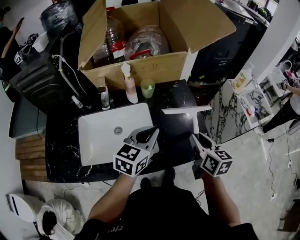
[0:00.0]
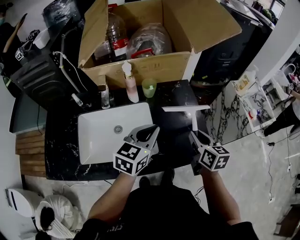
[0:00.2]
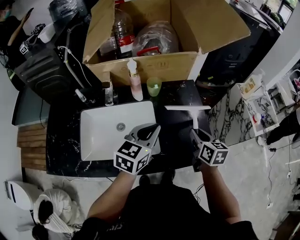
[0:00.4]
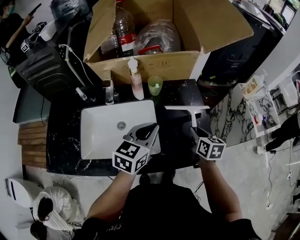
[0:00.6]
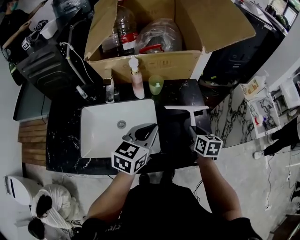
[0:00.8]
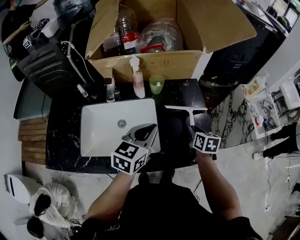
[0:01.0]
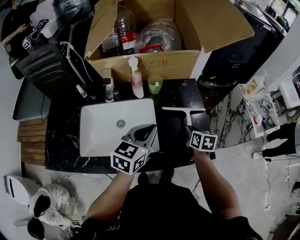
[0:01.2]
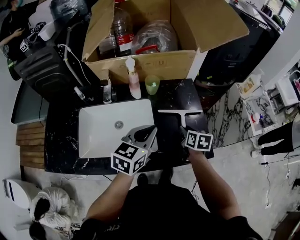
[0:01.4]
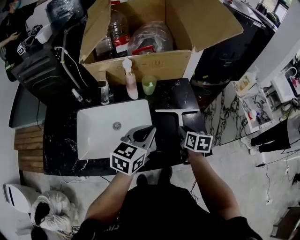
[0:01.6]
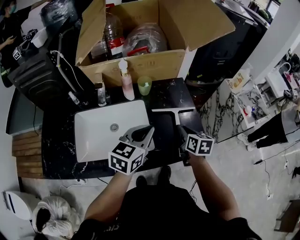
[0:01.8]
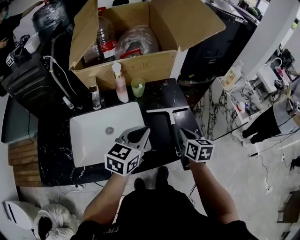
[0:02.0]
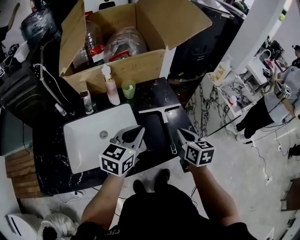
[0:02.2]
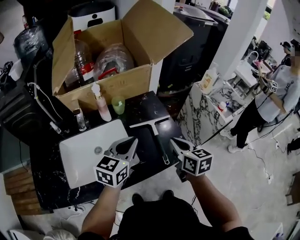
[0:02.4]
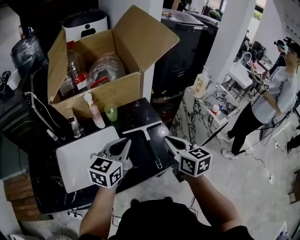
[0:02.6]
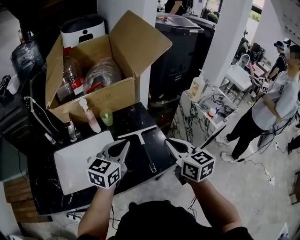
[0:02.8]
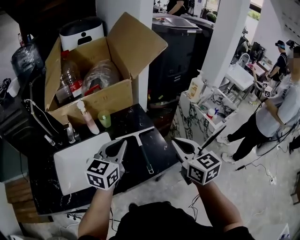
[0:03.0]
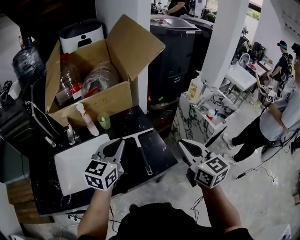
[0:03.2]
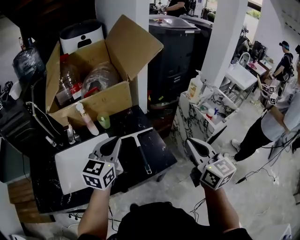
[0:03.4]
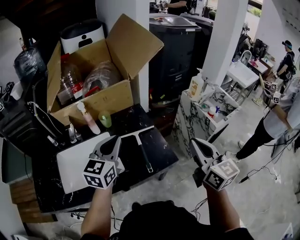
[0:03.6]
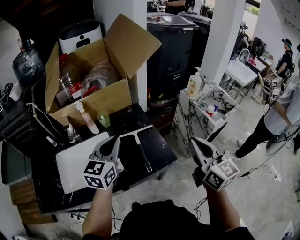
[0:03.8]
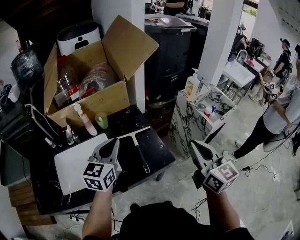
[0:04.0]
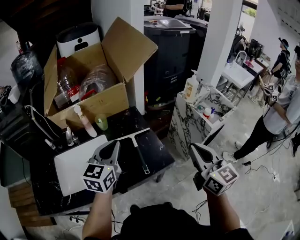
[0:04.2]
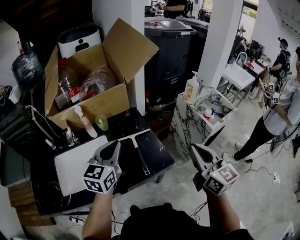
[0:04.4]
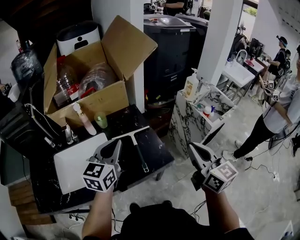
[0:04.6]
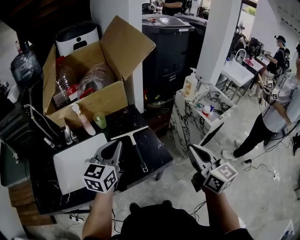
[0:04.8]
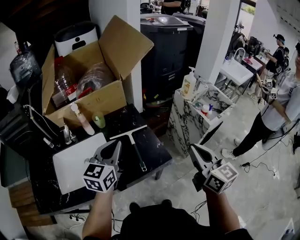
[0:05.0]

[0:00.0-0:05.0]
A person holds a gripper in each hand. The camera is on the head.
0:00.0 to 0:01.6: The right gripper goes about 15 cm downward and forward.
0:01.6 to 0:03.4: The right gripper shifts roughly 35 cm upward and to the right, angles its fingers upward, by roughly 40 degrees, and closes; the left gripper goes some 15 cm upward and to the right.
0:03.4 to 0:05.0: The right gripper moves approximately 5 cm.

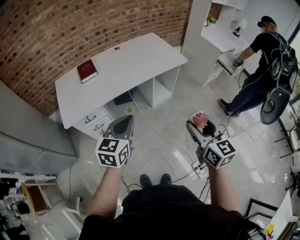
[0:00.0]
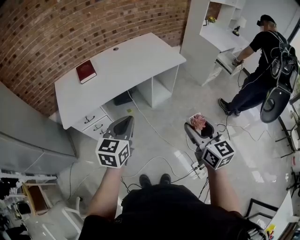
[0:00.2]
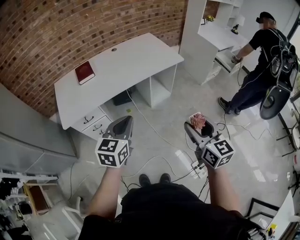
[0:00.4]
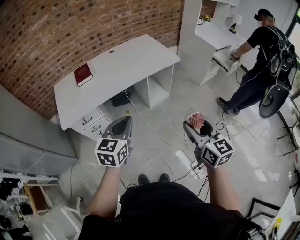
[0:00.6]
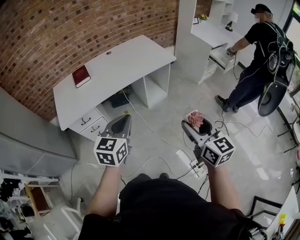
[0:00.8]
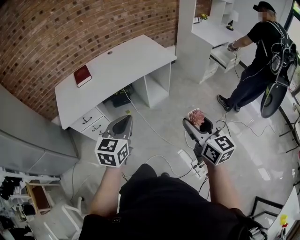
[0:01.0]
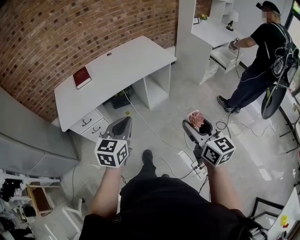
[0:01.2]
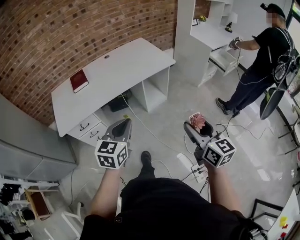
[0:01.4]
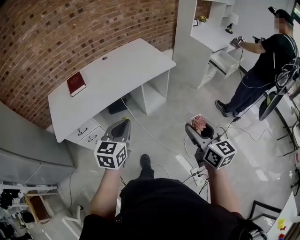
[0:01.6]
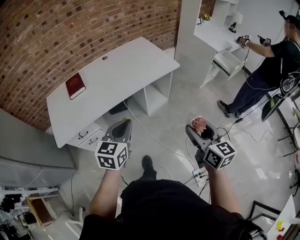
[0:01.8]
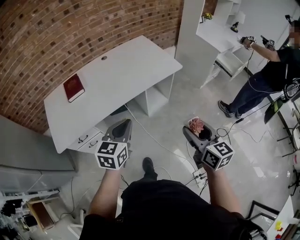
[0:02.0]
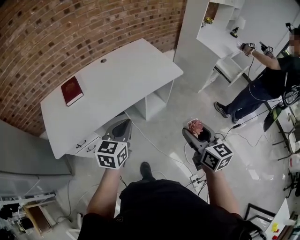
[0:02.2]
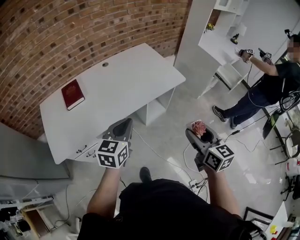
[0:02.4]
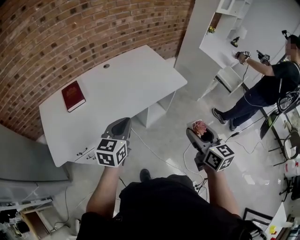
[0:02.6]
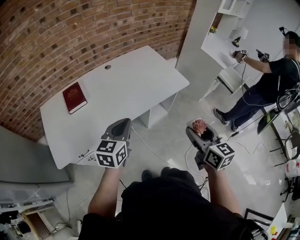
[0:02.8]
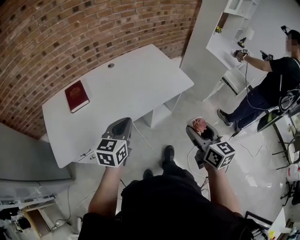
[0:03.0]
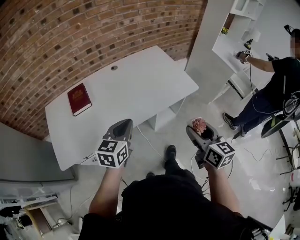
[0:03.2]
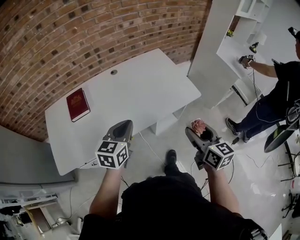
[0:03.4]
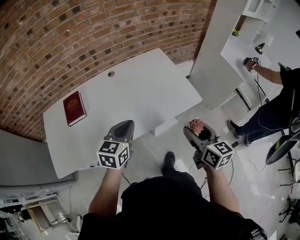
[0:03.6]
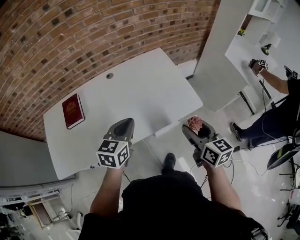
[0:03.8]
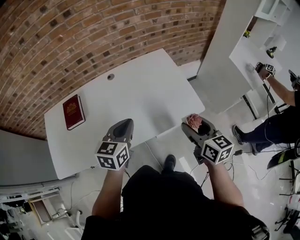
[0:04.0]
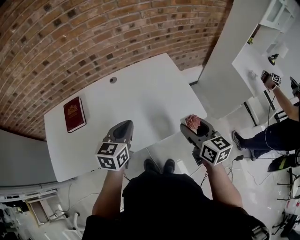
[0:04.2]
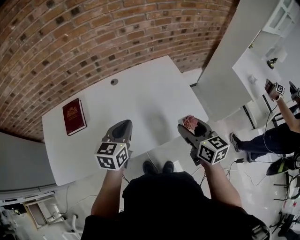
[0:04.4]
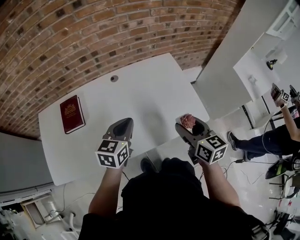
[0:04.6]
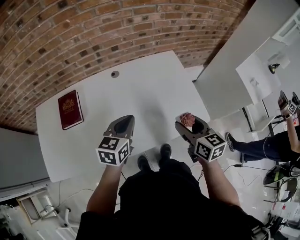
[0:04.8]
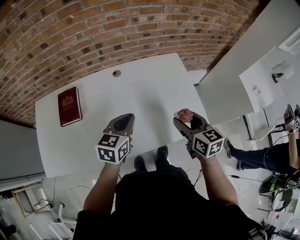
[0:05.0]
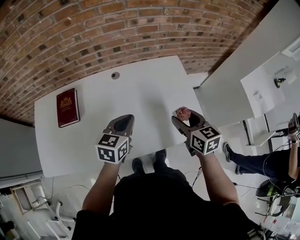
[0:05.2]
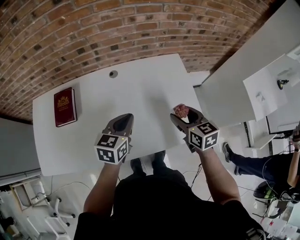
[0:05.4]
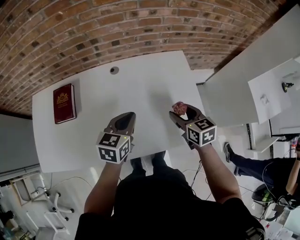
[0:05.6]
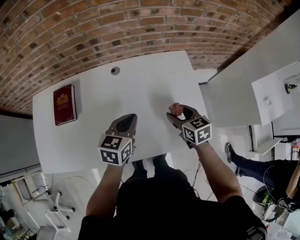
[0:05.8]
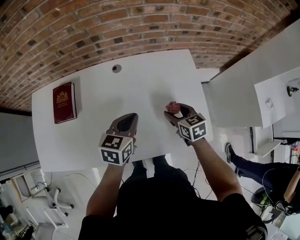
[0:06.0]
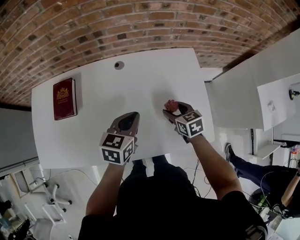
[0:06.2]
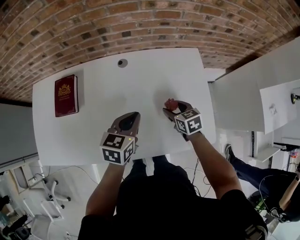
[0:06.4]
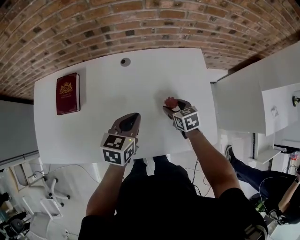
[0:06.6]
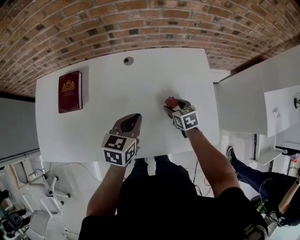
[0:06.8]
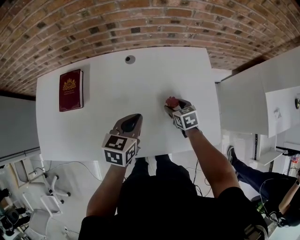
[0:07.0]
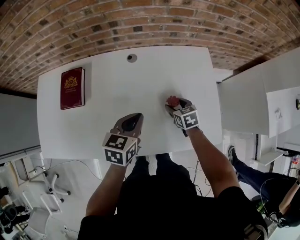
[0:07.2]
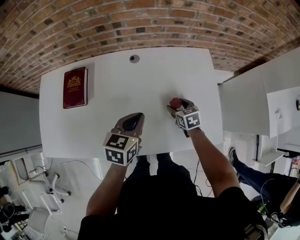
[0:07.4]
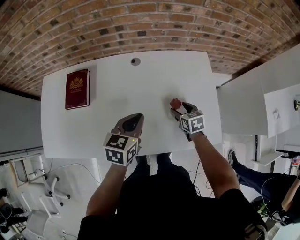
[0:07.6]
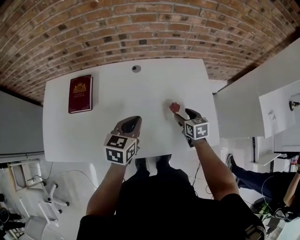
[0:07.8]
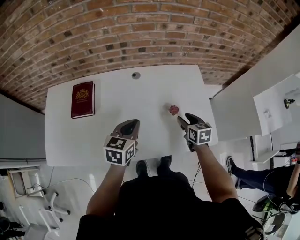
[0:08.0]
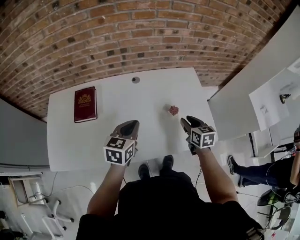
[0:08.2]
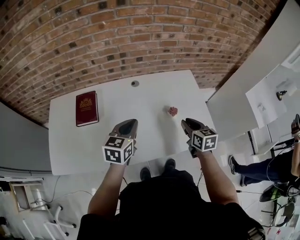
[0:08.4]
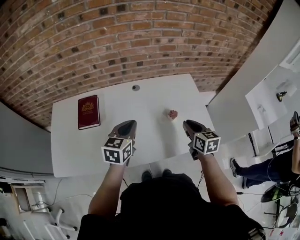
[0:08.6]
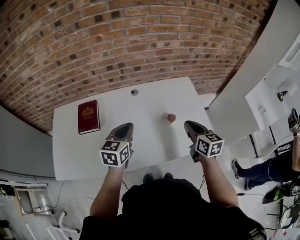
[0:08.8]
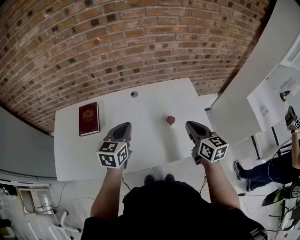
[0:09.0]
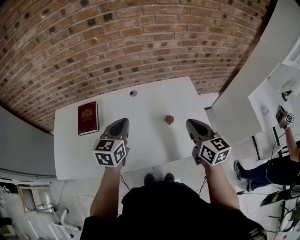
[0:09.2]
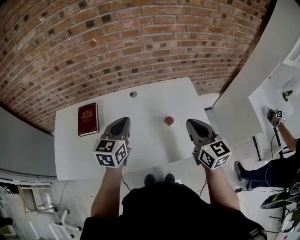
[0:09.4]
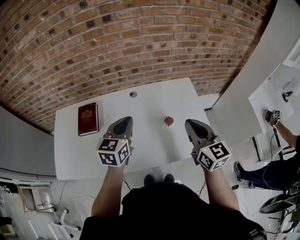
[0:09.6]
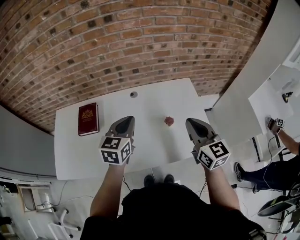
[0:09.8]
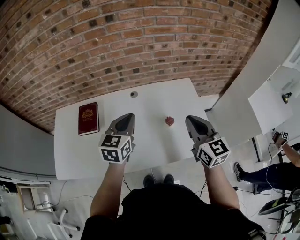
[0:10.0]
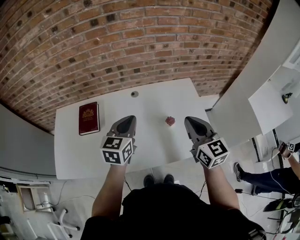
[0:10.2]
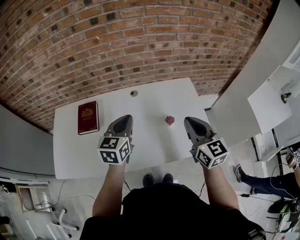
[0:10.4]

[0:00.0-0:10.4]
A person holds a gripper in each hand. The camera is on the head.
0:00.0 to 0:01.4: Both grippers travel together to the right, approximately 10 cm.
0:01.4 to 0:03.0: The two grippers go some 30 cm forward and to the left.
0:03.0 to 0:04.4: Both grippers travel together forward, some 30 cm.
0:04.4 to 0:06.0: The left gripper is displaced forward and downward by roughly 15 cm. Meanwhile the right gripper is displaced forward and downward by about 25 cm, and rotates roughly 30 degrees.
0:06.0 to 0:07.4: The right gripper heads downward, covering roughly 10 cm.
0:07.4 to 0:09.0: The left gripper travels upward and to the left by some 15 cm. The right gripper shifts approximately 30 cm upward and backward, angles its fingers upward, by about 30 degrees, and closes its fingers.
0:09.0 to 0:10.4: The right gripper is displaced upward by some 5 cm.

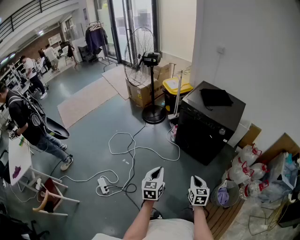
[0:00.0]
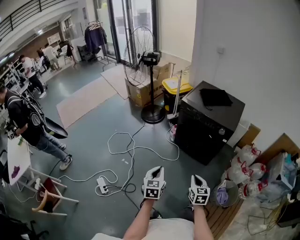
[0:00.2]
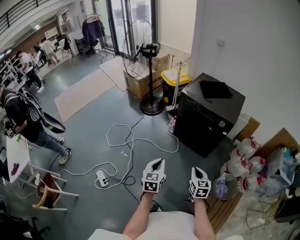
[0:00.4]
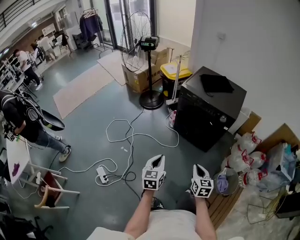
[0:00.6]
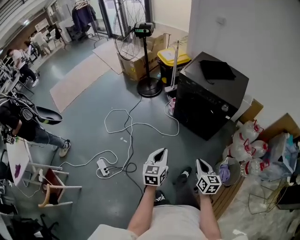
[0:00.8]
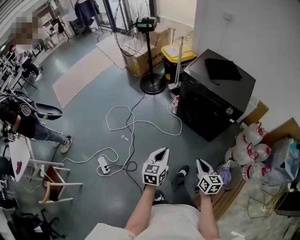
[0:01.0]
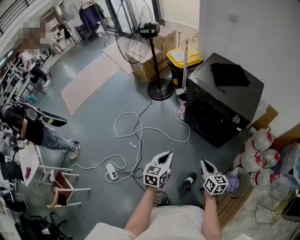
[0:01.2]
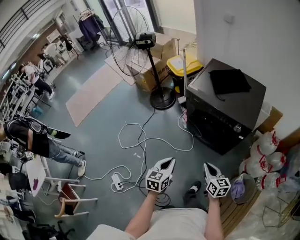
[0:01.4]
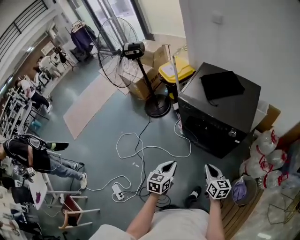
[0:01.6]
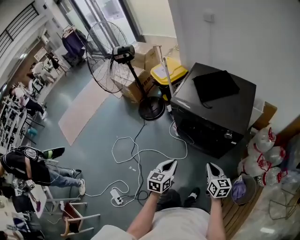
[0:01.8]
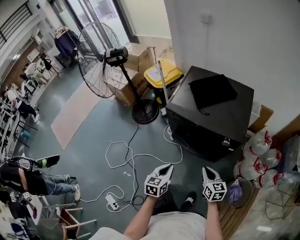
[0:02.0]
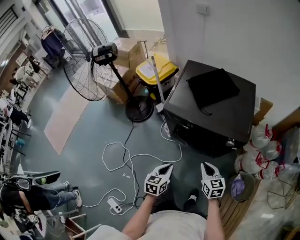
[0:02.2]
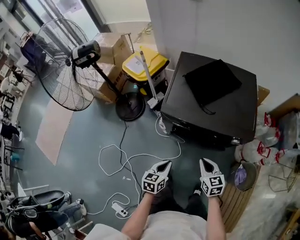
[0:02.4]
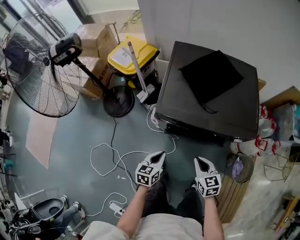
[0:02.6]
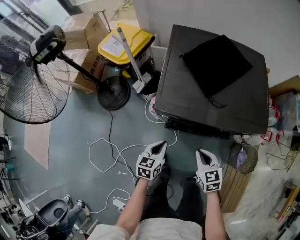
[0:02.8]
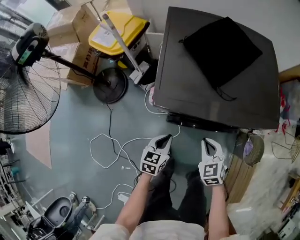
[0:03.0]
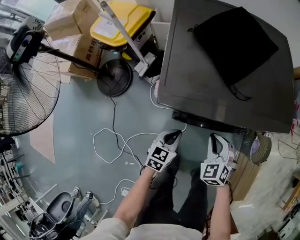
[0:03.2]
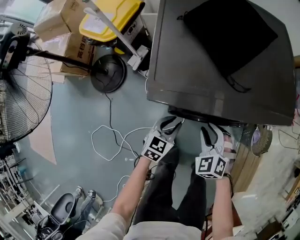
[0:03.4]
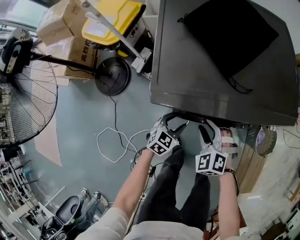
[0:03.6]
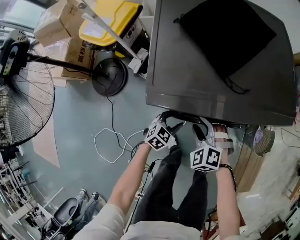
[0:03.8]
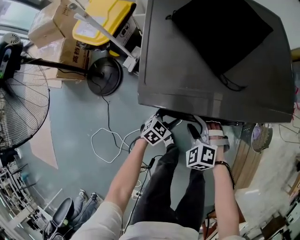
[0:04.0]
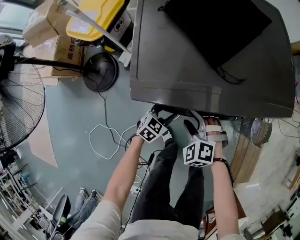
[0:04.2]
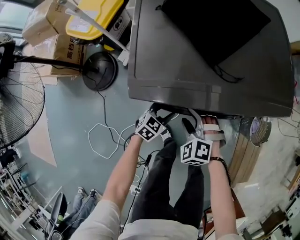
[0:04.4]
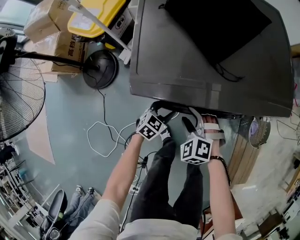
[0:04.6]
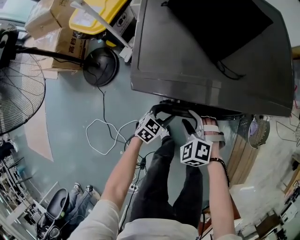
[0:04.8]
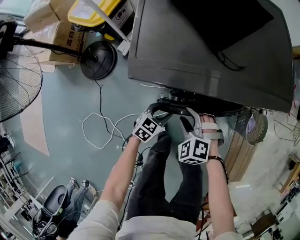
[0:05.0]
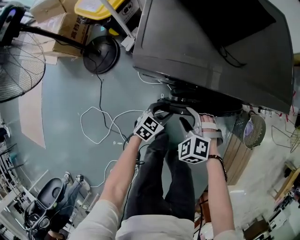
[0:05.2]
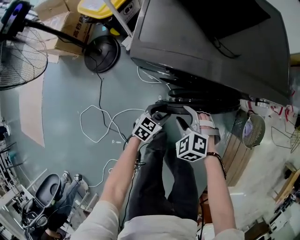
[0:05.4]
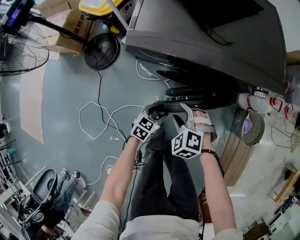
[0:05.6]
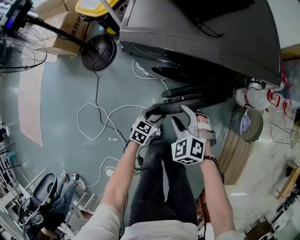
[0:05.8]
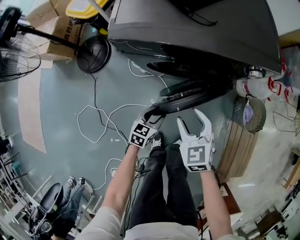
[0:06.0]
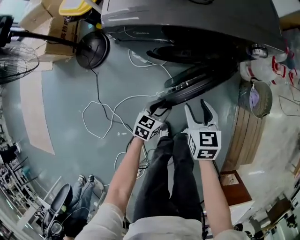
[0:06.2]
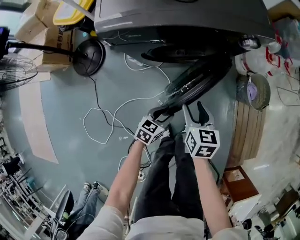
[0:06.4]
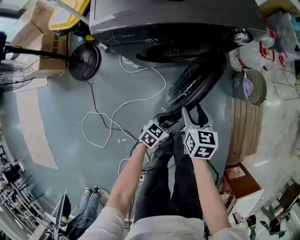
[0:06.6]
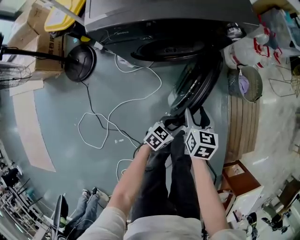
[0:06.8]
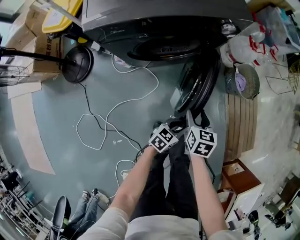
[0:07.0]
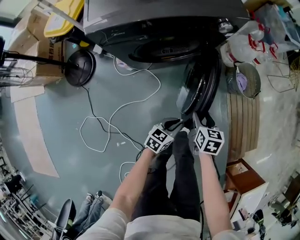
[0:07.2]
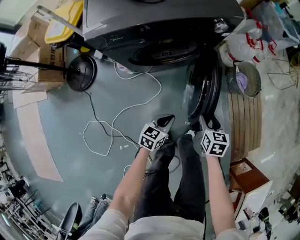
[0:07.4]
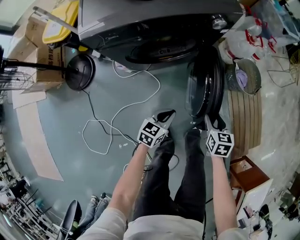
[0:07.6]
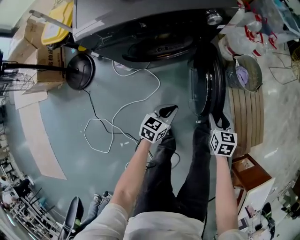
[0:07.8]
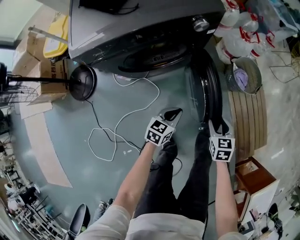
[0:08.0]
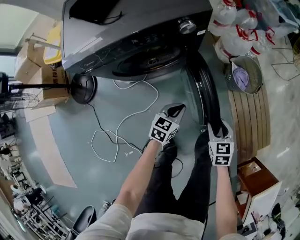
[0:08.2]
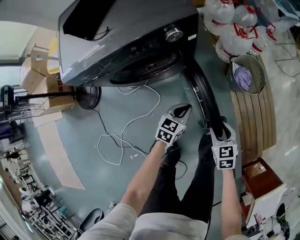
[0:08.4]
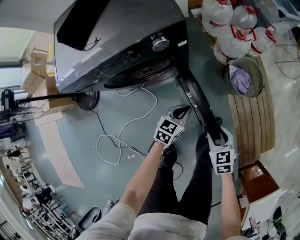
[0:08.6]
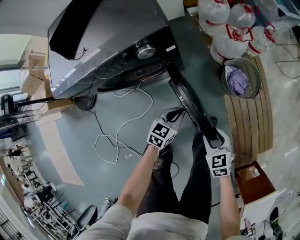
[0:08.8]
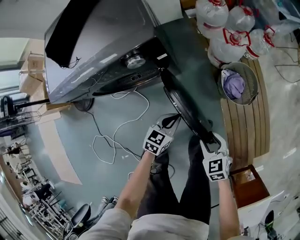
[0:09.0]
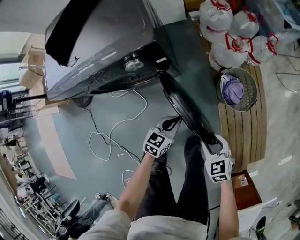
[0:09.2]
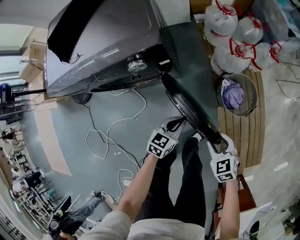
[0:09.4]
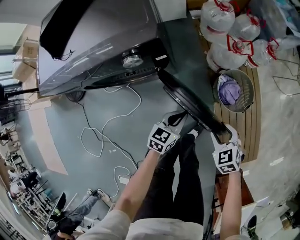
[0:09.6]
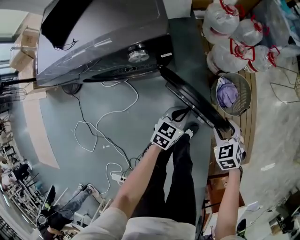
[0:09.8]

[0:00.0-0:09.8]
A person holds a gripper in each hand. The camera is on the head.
0:00.0 to 0:01.4: Both grippers travel together forward, approximately 20 cm. The right gripper changes its angle by some 20 degrees.
0:01.4 to 0:02.8: The left gripper moves about 40 cm, and turns by approximately 30 degrees, while the right gripper ends up some 35 cm from where it was, and turns by about 30 degrees.
0:02.8 to 0:04.2: The left gripper goes about 20 cm downward and forward, changes its angle by roughly 40 degrees, and opens; the right gripper moves downward and to the left, roughly 15 cm, twists roughly 50 degrees counterclockwise, seen from behind, and opens up.
0:04.2 to 0:05.6: Both grippers travel together backward, about 10 cm.
0:05.6 to 0:07.0: The left gripper moves approximately 25 cm, and rotates some 30 degrees. The right gripper changes place by some 20 cm, and rolls clockwise, seen from behind, by some 90 degrees.
0:07.0 to 0:08.4: The left gripper shifts about 20 cm forward, and closes its fingers, while the right gripper shifts about 20 cm to the right.
0:08.4 to 0:09.8: The left gripper heads to the right and forward, covering about 20 cm; the right gripper is displaced forward and to the right by some 20 cm, and rotates some 30 degrees.
